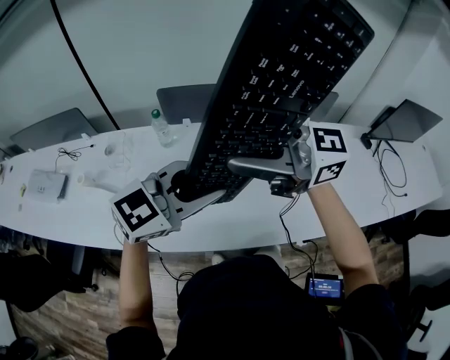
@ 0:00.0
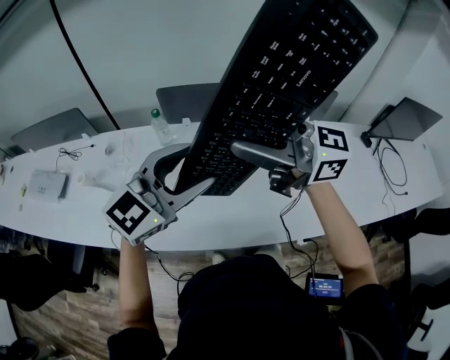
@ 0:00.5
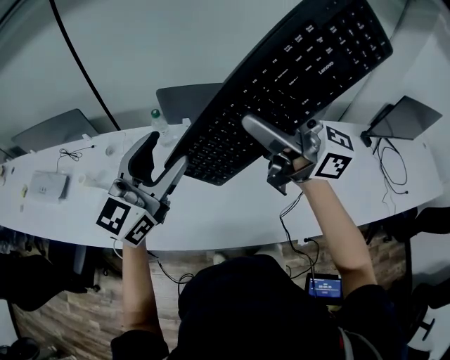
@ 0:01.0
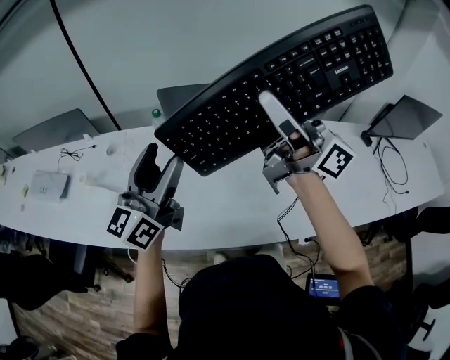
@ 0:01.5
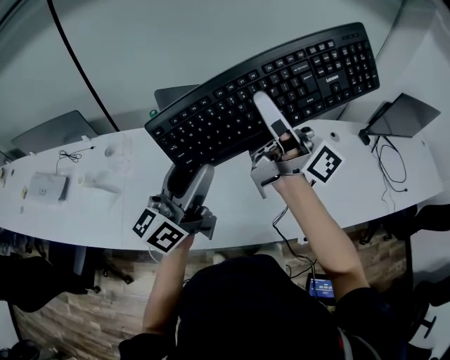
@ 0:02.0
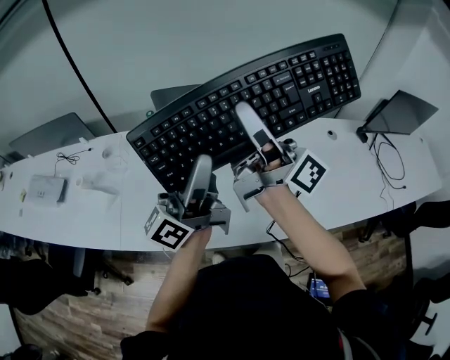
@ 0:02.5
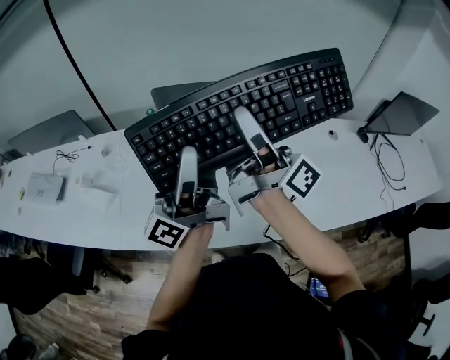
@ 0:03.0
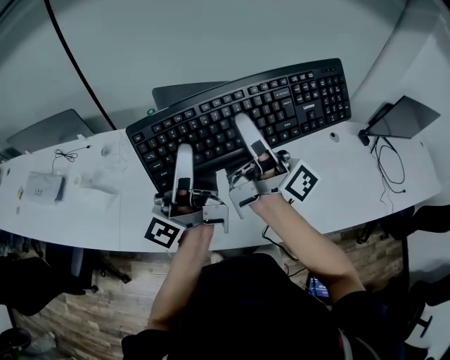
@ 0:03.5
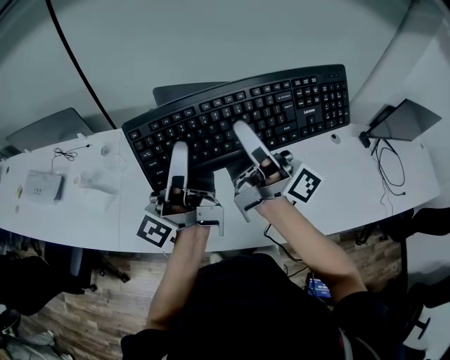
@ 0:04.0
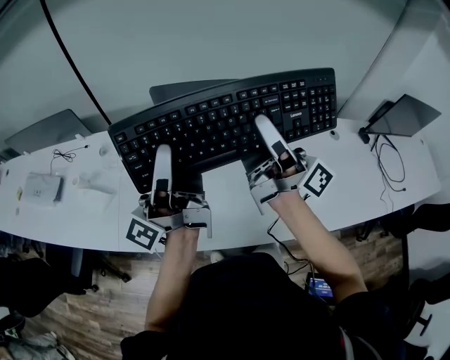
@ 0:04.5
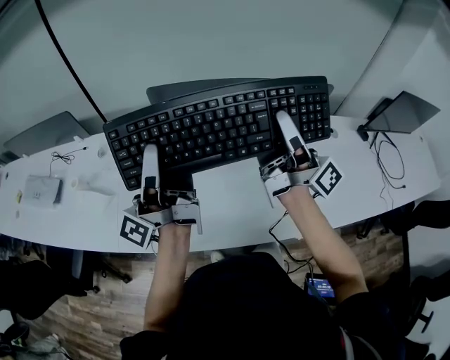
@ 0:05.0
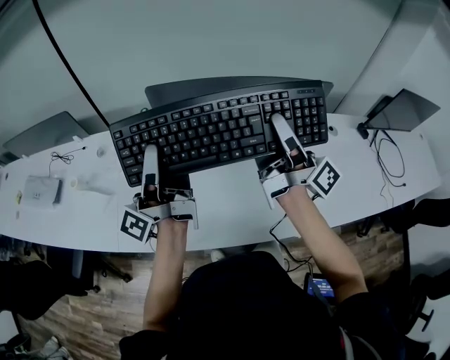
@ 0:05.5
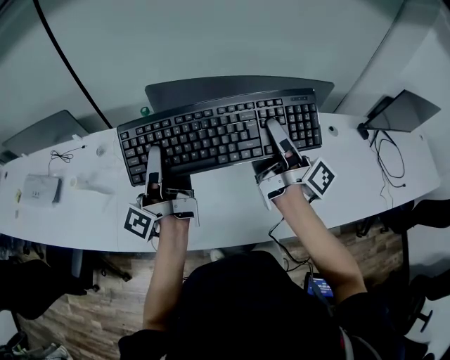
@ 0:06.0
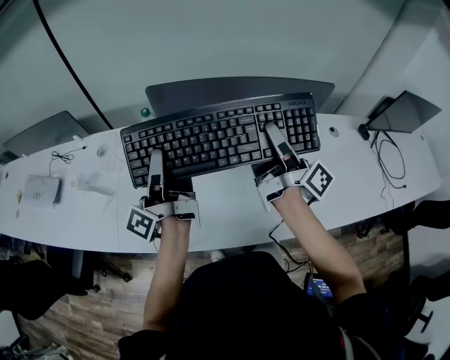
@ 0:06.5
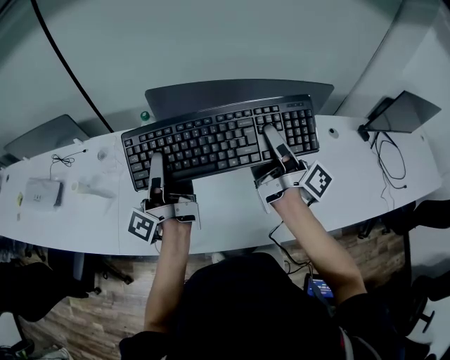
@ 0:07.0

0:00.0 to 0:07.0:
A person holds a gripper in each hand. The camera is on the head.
0:00.0 to 0:02.0: The left gripper tips its fingers upward by roughly 40 degrees, and opens up. Meanwhile the right gripper ends up about 10 cm from where it was, and points its fingers some 30 degrees further upward.
0:02.0 to 0:03.5: The right gripper heads downward, covering roughly 5 cm. Meanwhile the left gripper moves roughly 5 cm, changes its angle by roughly 30 degrees, and closes its fingers.
0:03.5 to 0:05.0: The right gripper heads to the right, covering approximately 10 cm.
0:05.0 to 0:07.0: Both grippers travel together downward, some 5 cm.

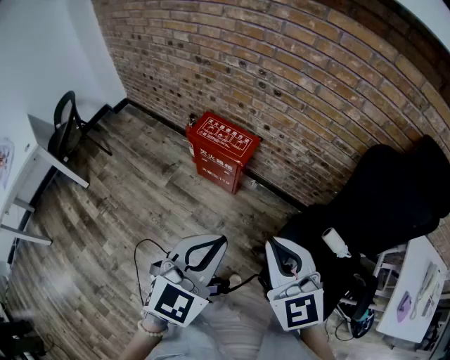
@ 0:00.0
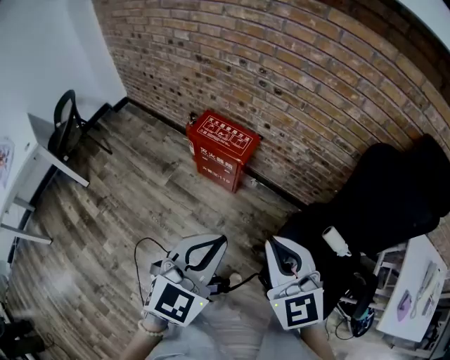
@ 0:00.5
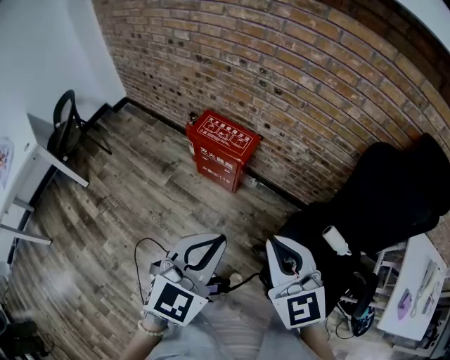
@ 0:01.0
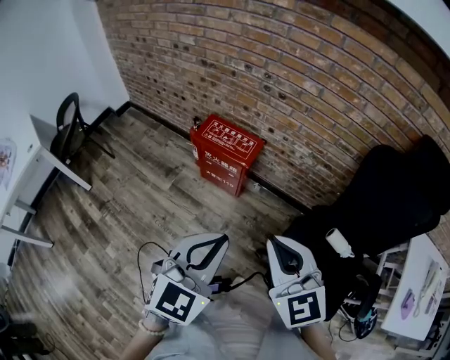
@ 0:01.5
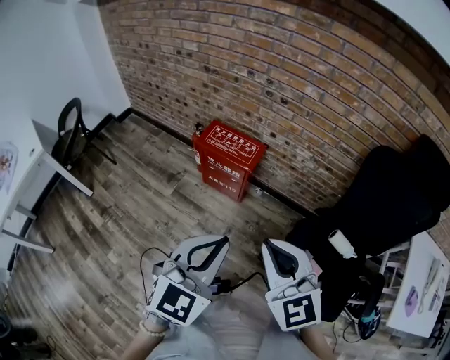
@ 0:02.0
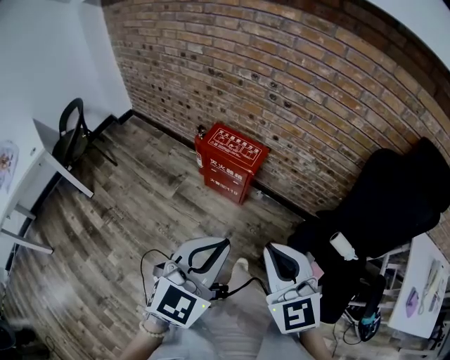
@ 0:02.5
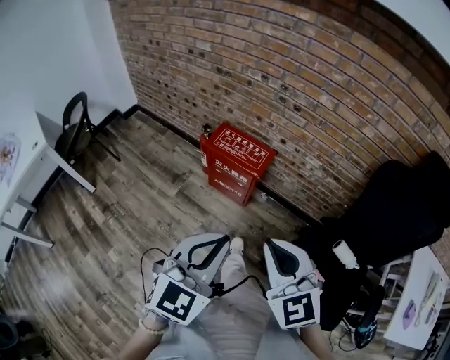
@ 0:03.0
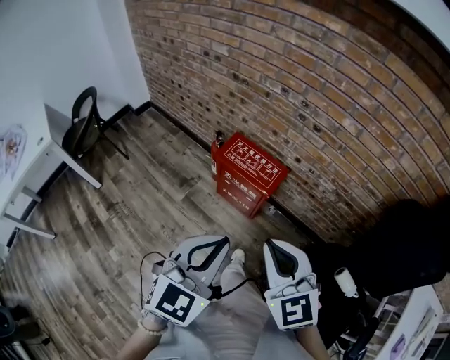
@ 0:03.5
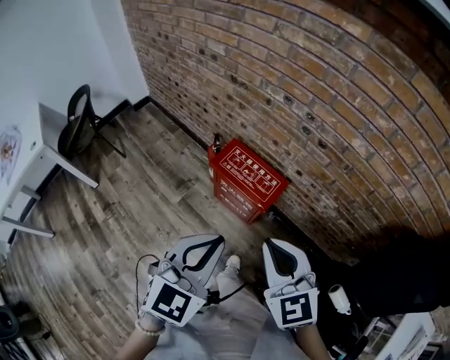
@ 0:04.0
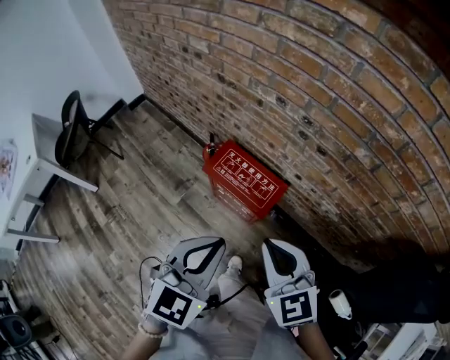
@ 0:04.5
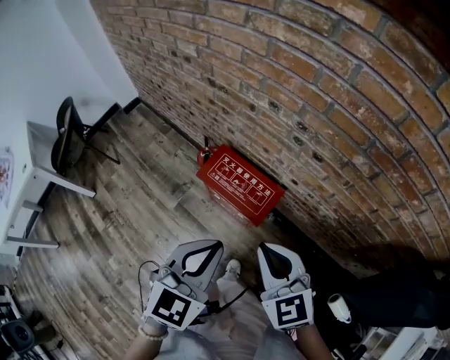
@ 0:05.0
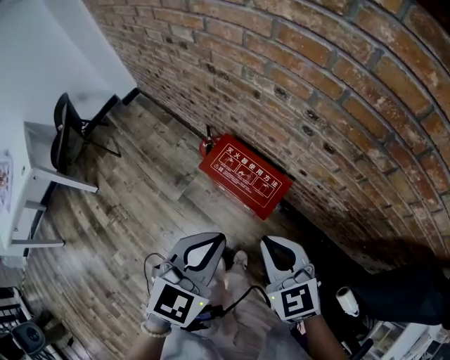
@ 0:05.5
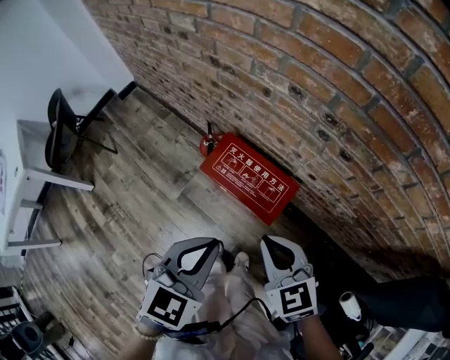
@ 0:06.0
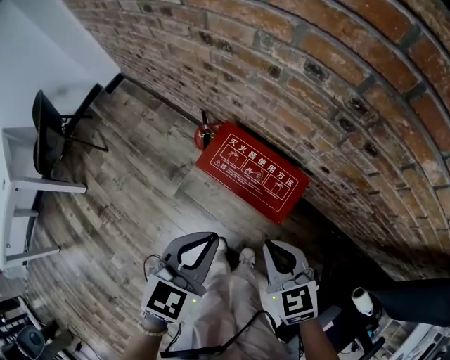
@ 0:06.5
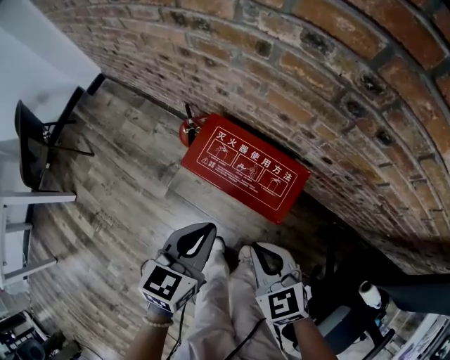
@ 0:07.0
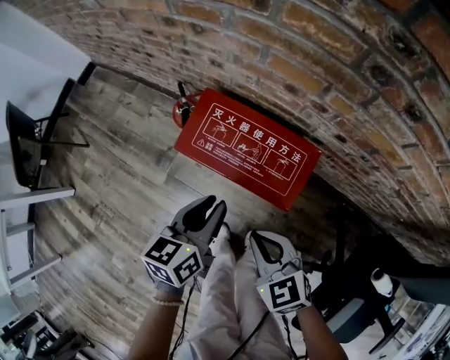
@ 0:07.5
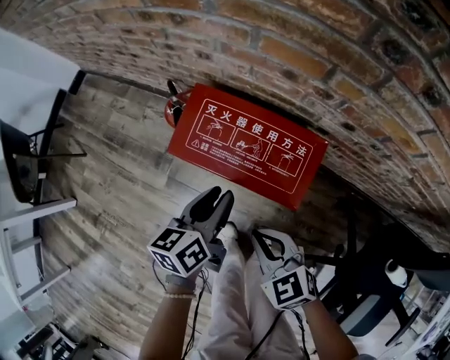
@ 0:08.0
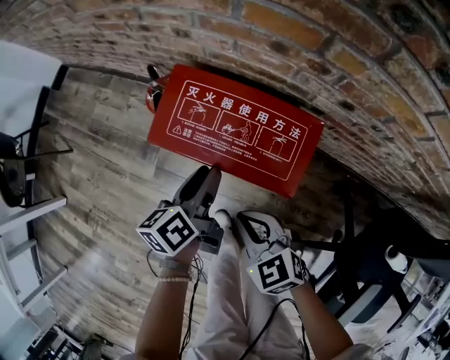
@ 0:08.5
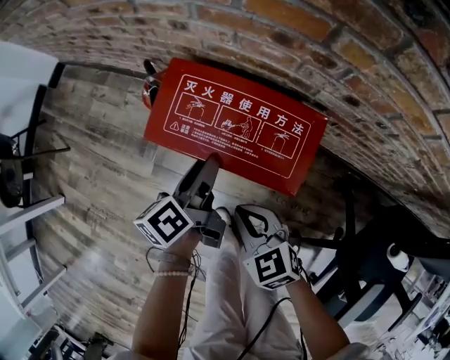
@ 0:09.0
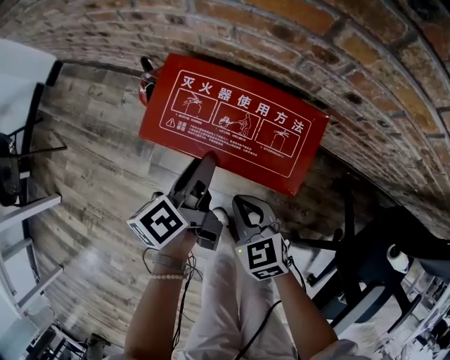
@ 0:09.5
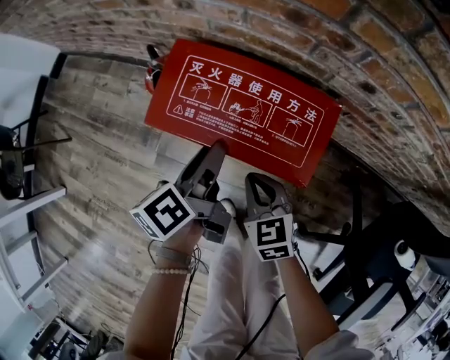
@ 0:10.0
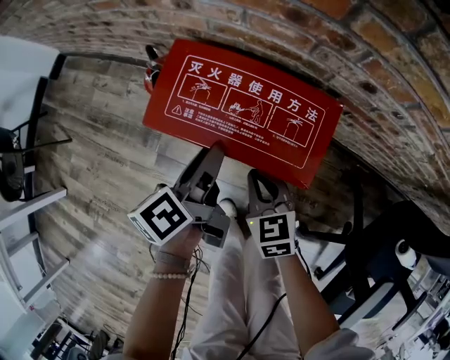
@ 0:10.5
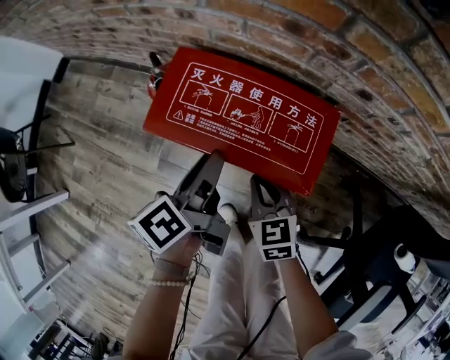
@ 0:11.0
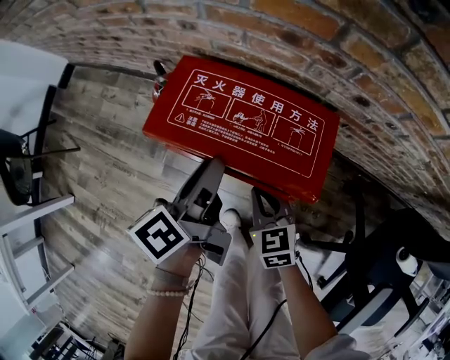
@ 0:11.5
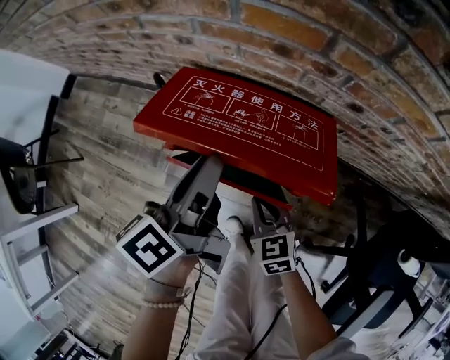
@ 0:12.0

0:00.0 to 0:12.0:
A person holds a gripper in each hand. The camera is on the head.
0:00.0 to 0:02.0: The right gripper is displaced to the left by some 5 cm. The left gripper ends up about 5 cm from where it was.
0:02.0 to 0:04.0: The grippers both shift forward by approximately 25 cm.
0:04.0 to 0:06.0: Both grippers move forward and downward, about 20 cm.
0:06.0 to 0:08.0: The grippers both shift downward by approximately 30 cm. The left gripper twists roughly 50 degrees counterclockwise, seen from behind, and opens.
0:08.0 to 0:10.0: The left gripper shifts by about 5 cm, and changes its angle by roughly 20 degrees. The right gripper goes about 15 cm downward and forward, and turns by about 20 degrees.
0:10.0 to 0:12.0: The left gripper goes some 10 cm upward.

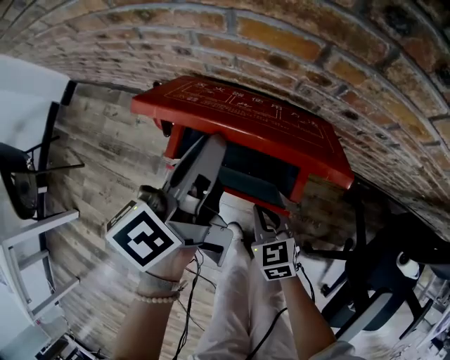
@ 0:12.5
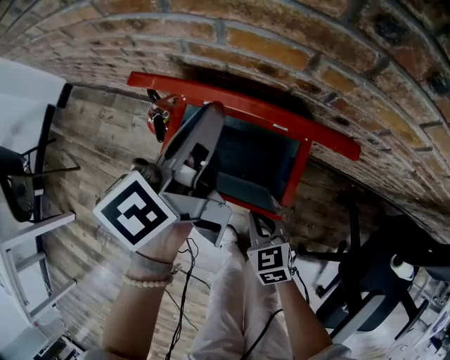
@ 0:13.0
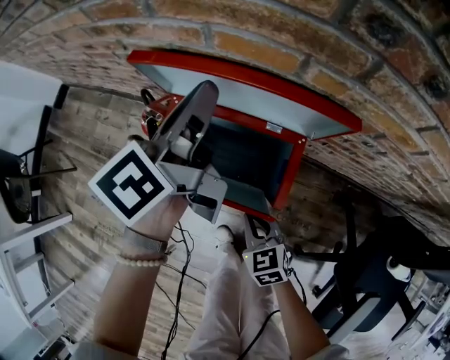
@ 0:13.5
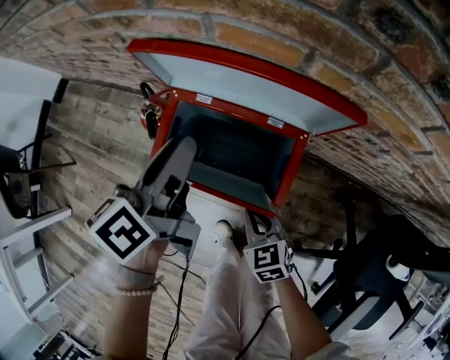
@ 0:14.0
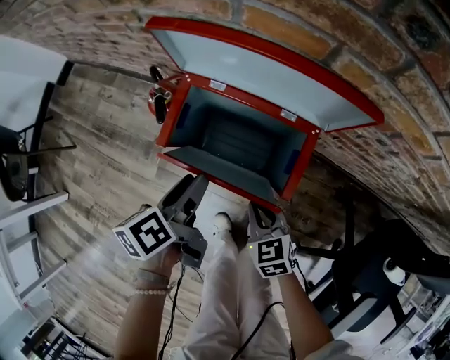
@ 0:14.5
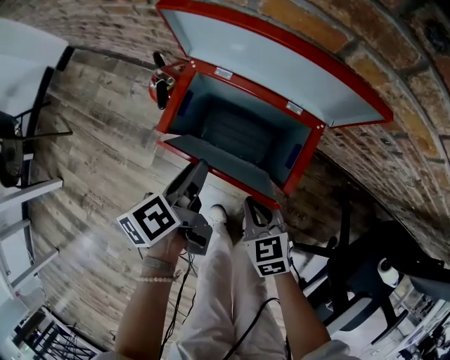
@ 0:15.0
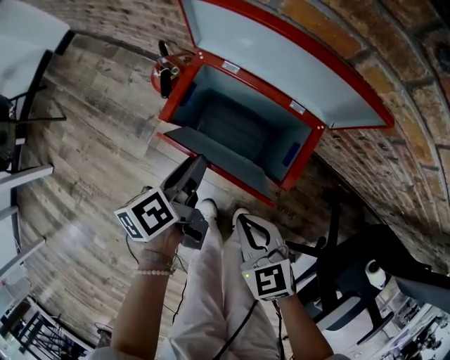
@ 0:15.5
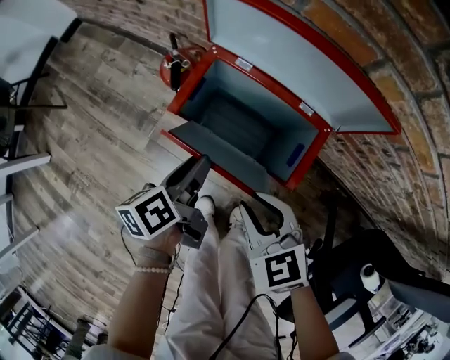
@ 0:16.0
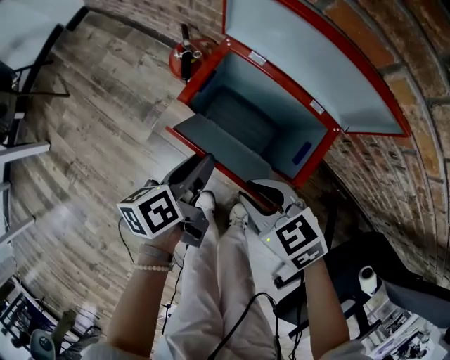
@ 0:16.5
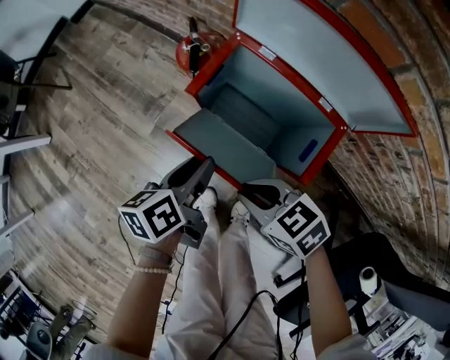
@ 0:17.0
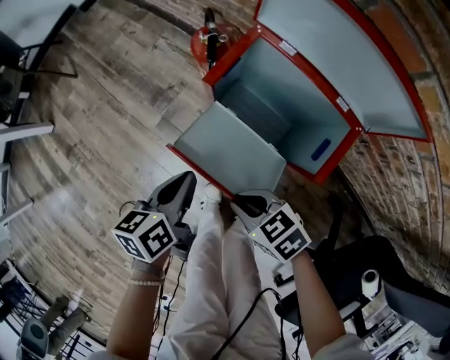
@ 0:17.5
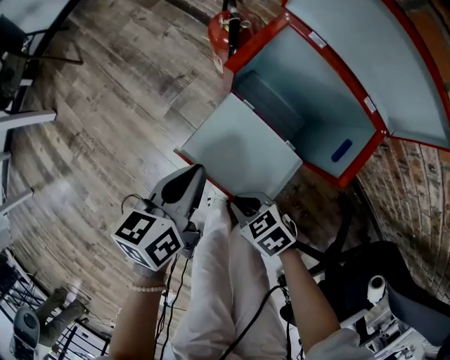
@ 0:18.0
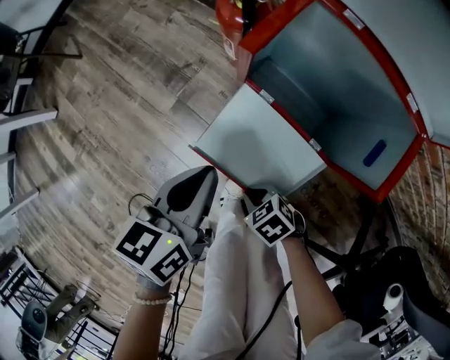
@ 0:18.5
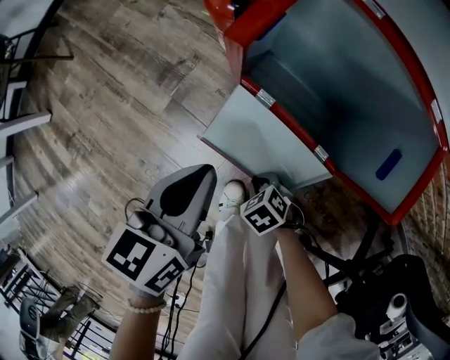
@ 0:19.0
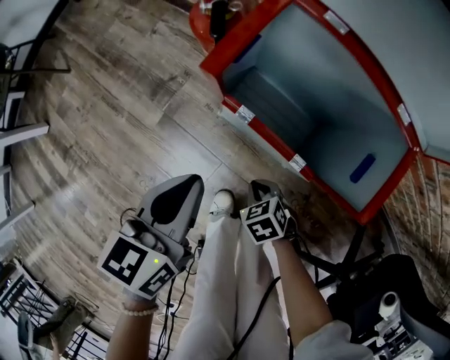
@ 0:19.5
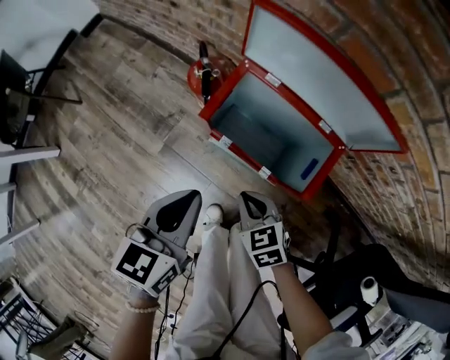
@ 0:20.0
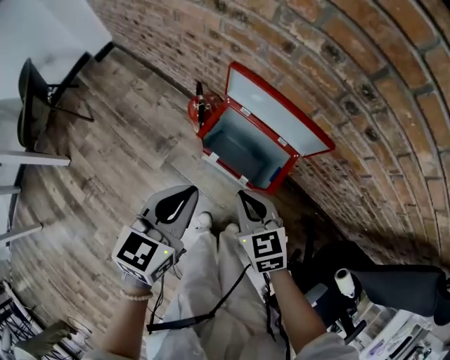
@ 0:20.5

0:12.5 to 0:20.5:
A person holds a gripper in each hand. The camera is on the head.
0:12.5 to 0:14.5: The left gripper heads downward and backward, covering about 15 cm, turns by approximately 30 degrees, and opens its fingers.
0:14.5 to 0:16.5: The right gripper heads upward and to the left, covering about 10 cm, swivels roughly 30 degrees, and opens.
0:16.5 to 0:18.5: The right gripper is displaced downward by about 25 cm, and changes its angle by approximately 30 degrees; the left gripper shifts by roughly 10 cm, swivels approximately 20 degrees, and closes up.
0:18.5 to 0:20.5: The two grippers go some 40 cm upward. The right gripper changes its angle by approximately 50 degrees, while the left gripper turns by some 30 degrees.
